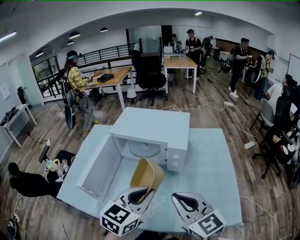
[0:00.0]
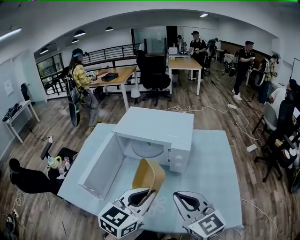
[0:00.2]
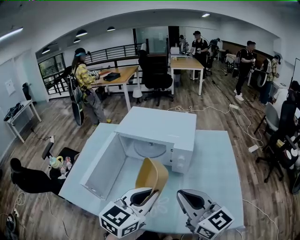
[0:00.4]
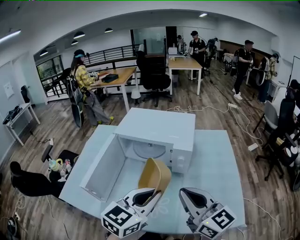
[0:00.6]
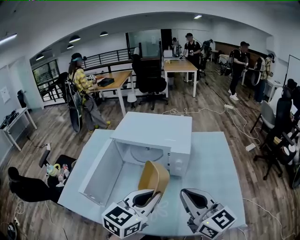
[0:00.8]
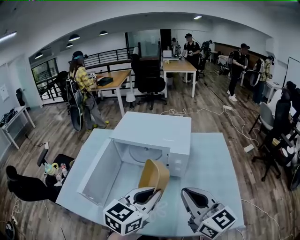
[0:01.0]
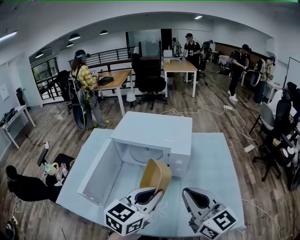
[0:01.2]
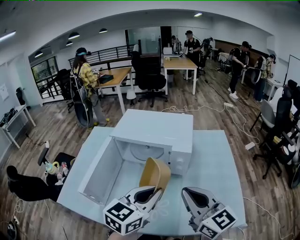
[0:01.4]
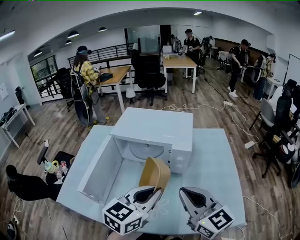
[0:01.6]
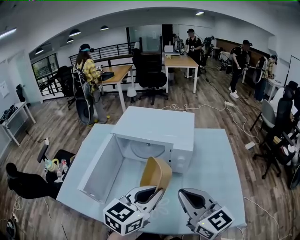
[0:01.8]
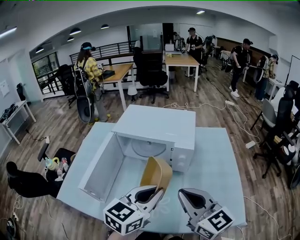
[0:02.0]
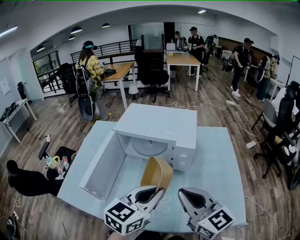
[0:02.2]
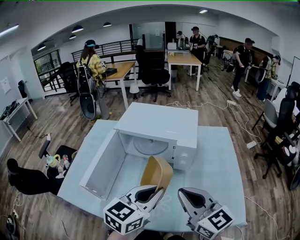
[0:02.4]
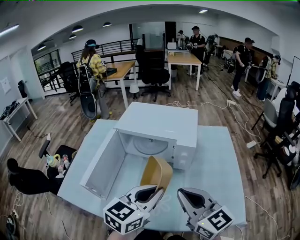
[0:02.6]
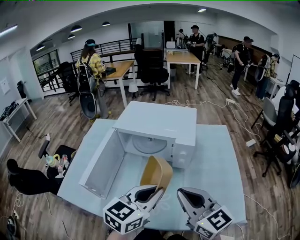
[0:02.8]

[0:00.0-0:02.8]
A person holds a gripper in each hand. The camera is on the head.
0:00.0 to 0:02.8: The grippers move only a little.

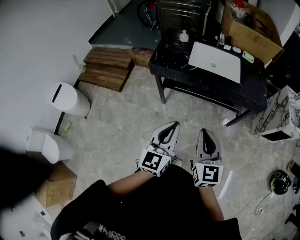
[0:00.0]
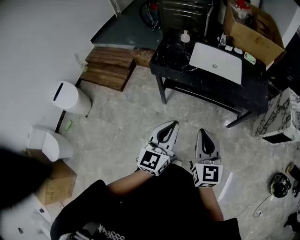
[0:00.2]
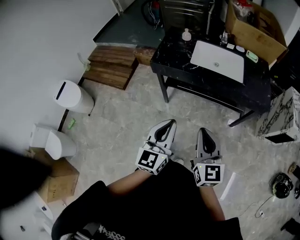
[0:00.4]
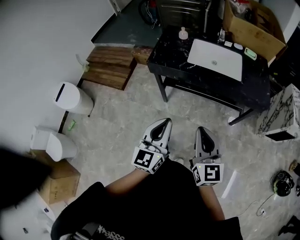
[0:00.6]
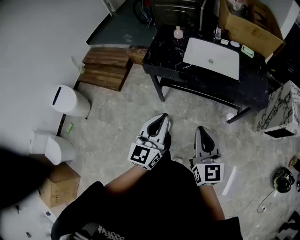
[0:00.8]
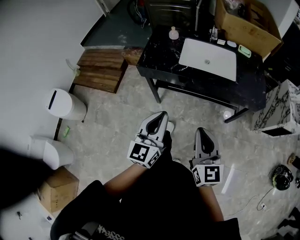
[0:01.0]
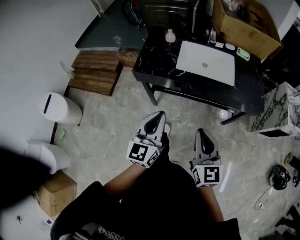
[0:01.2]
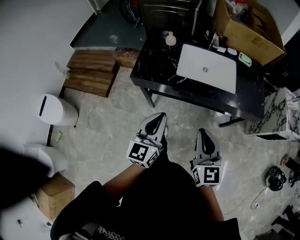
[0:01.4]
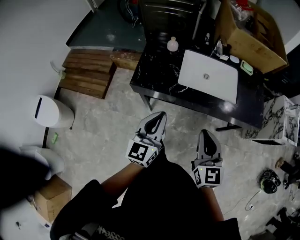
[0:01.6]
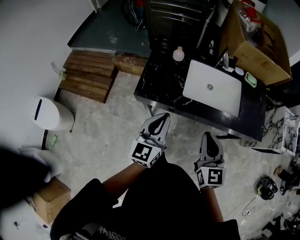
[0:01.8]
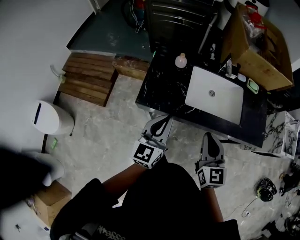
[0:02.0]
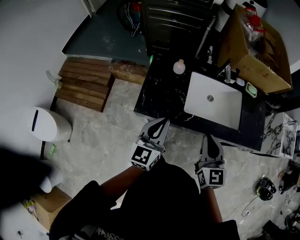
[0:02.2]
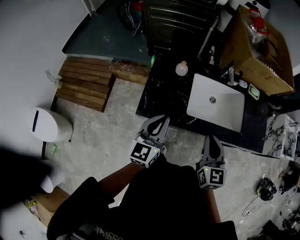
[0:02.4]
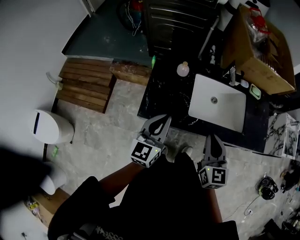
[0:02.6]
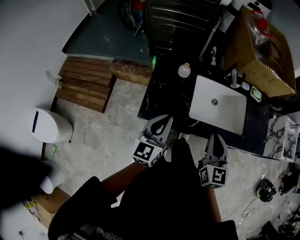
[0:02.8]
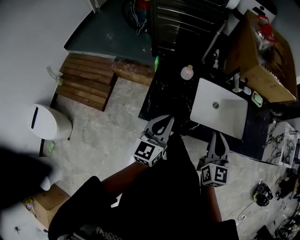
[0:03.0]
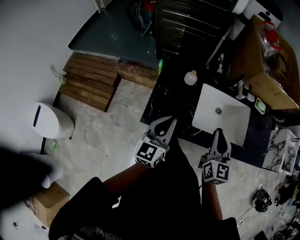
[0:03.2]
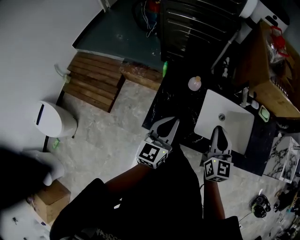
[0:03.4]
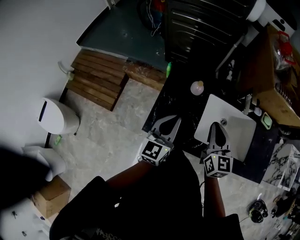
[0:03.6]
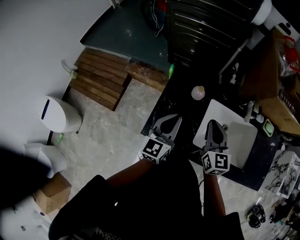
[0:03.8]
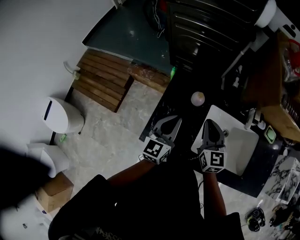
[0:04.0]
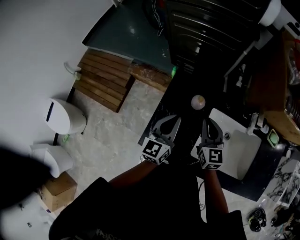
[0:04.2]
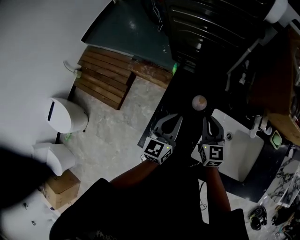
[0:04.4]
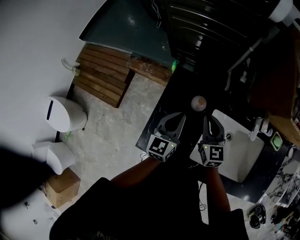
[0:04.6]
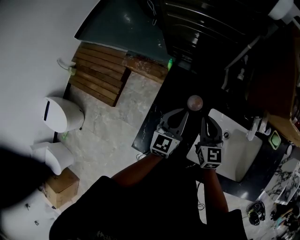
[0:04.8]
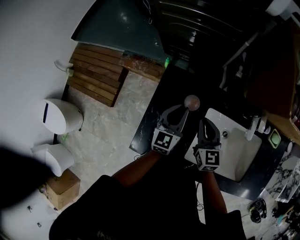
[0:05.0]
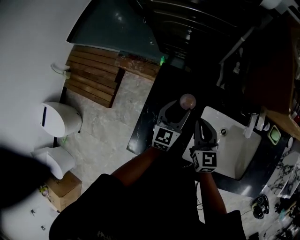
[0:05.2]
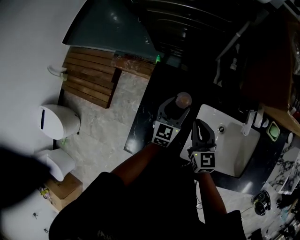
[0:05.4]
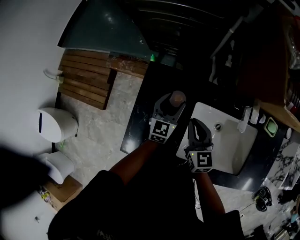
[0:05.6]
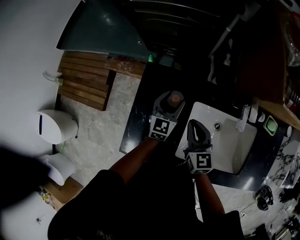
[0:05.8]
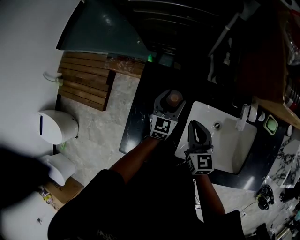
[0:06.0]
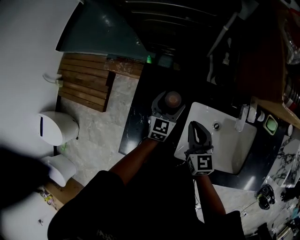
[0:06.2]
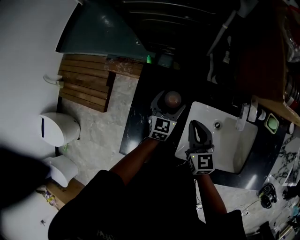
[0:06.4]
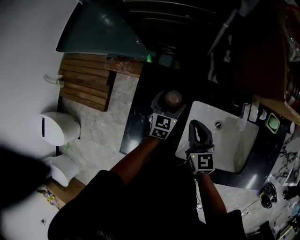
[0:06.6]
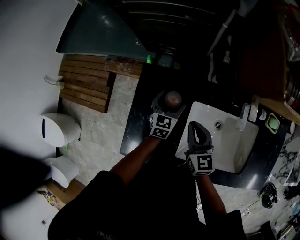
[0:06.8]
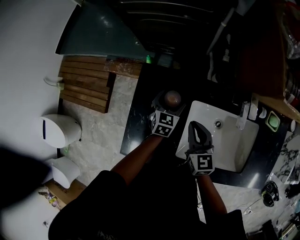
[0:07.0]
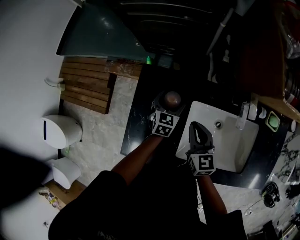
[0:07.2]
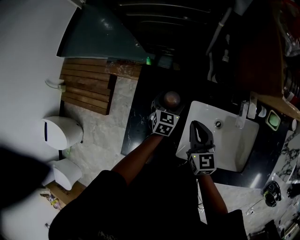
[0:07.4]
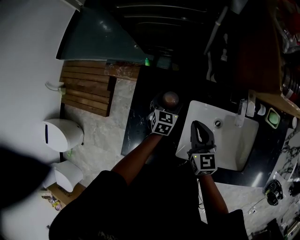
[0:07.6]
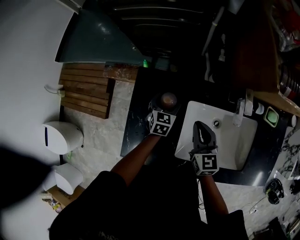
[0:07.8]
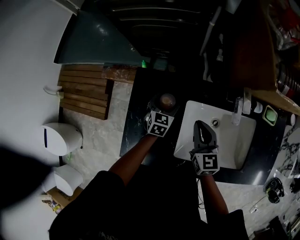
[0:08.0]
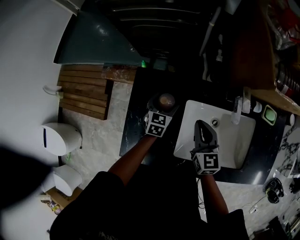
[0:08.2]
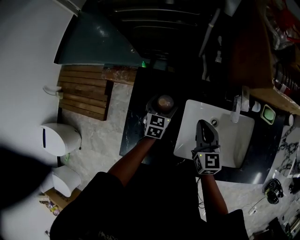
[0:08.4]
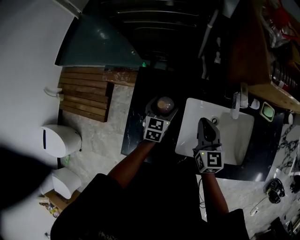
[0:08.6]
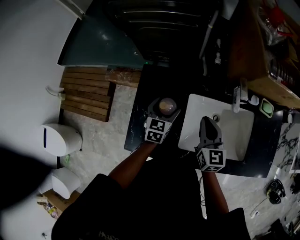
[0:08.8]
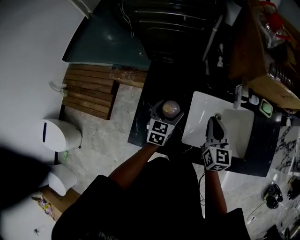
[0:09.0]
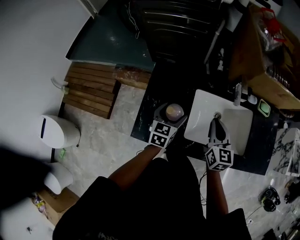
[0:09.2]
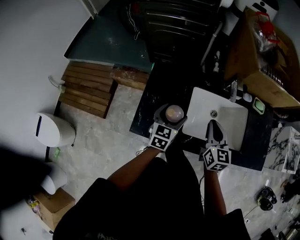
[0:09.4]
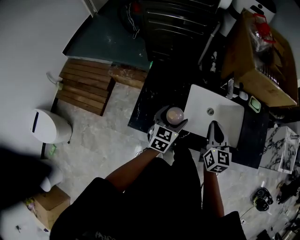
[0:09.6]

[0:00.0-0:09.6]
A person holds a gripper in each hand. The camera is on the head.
0:00.0 to 0:01.6: Both grippers move forward, about 25 cm.
0:01.6 to 0:03.2: The left gripper travels forward and to the left by roughly 25 cm, while the right gripper goes about 25 cm forward.
0:03.2 to 0:04.8: Both grippers travel together forward and downward, roughly 30 cm. The right gripper rotates approximately 20 degrees.
0:04.8 to 0:06.4: The right gripper shifts by roughly 5 cm. Meanwhile the left gripper heads downward, forward and to the right, covering roughly 15 cm, and opens.
0:06.4 to 0:08.0: The grippers stay close to where they were, moving slightly.
0:08.0 to 0:09.6: The two grippers go approximately 25 cm backward and upward.

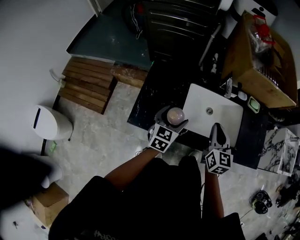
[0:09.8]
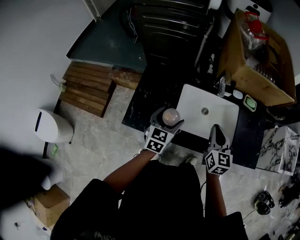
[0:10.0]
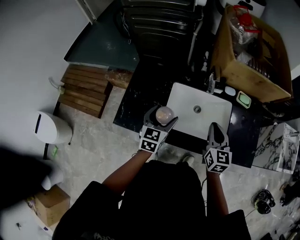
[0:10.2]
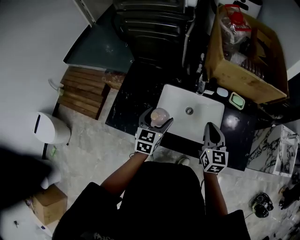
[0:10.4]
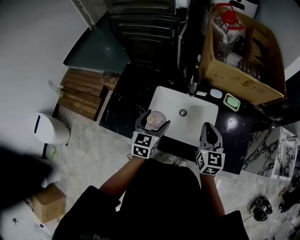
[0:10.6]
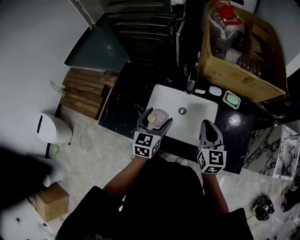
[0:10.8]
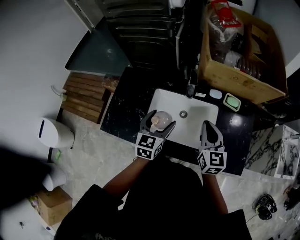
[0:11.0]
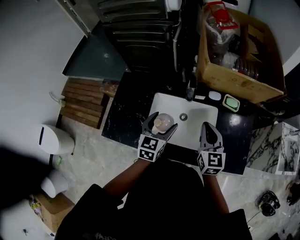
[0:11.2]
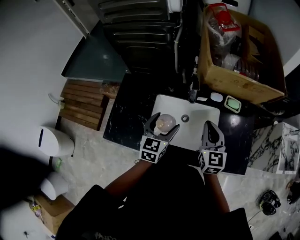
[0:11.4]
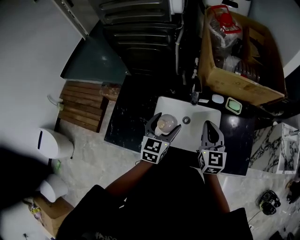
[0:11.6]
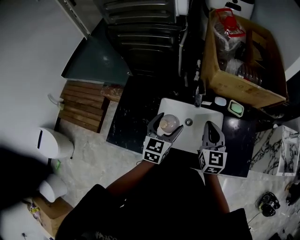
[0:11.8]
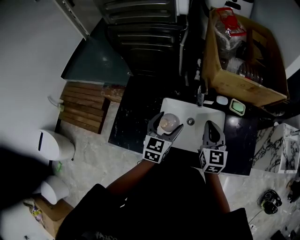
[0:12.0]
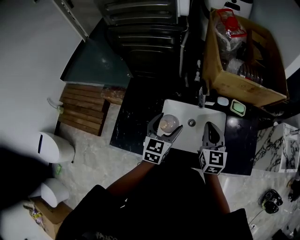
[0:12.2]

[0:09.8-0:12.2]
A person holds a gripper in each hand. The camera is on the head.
0:09.8 to 0:11.0: The two grippers go about 15 cm to the right.
0:11.0 to 0:12.2: The two grippers go about 5 cm to the left.

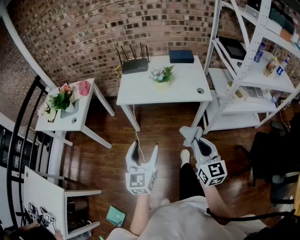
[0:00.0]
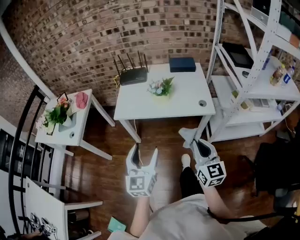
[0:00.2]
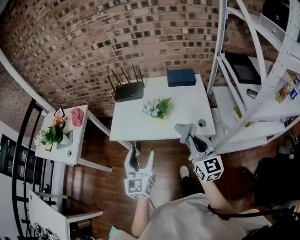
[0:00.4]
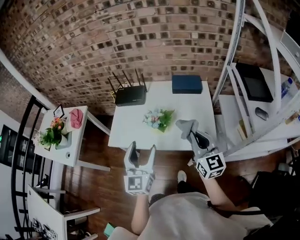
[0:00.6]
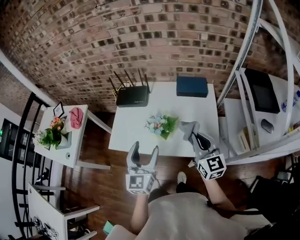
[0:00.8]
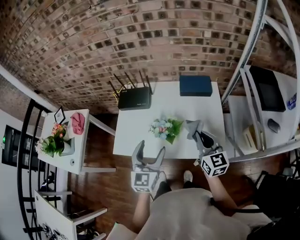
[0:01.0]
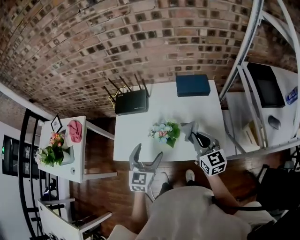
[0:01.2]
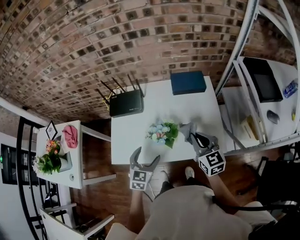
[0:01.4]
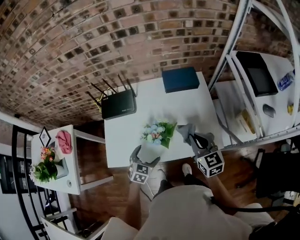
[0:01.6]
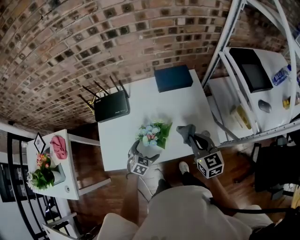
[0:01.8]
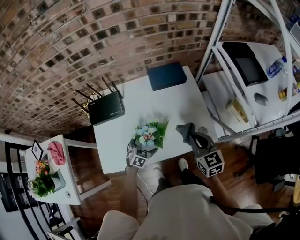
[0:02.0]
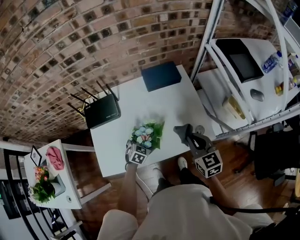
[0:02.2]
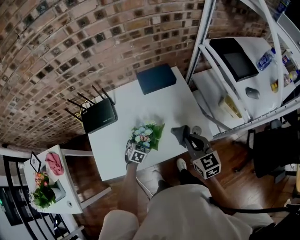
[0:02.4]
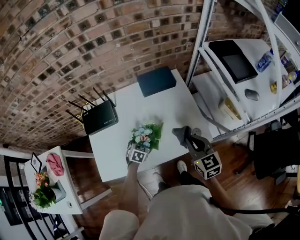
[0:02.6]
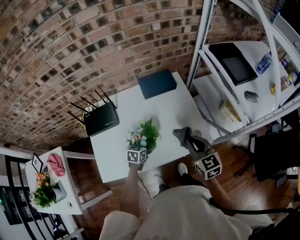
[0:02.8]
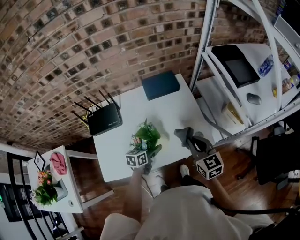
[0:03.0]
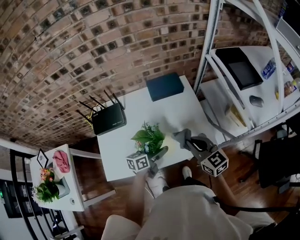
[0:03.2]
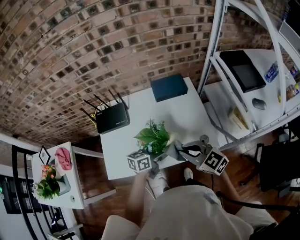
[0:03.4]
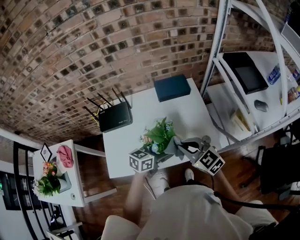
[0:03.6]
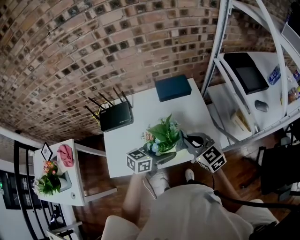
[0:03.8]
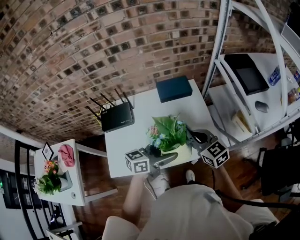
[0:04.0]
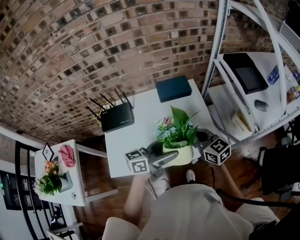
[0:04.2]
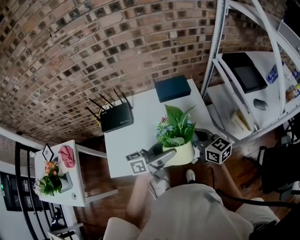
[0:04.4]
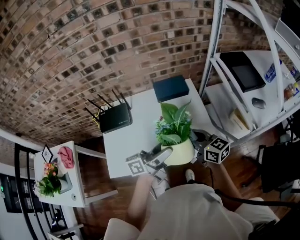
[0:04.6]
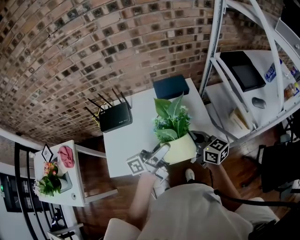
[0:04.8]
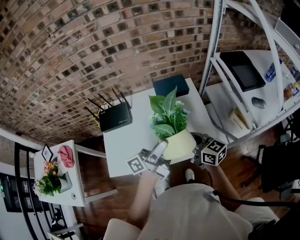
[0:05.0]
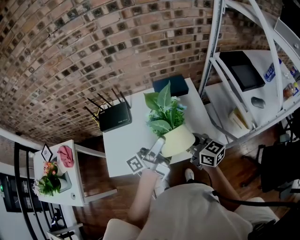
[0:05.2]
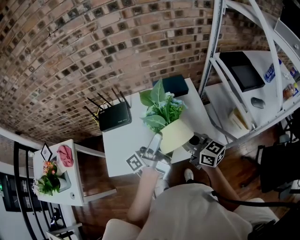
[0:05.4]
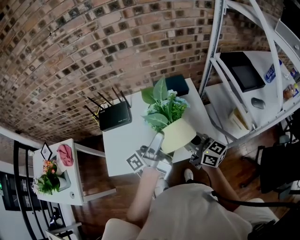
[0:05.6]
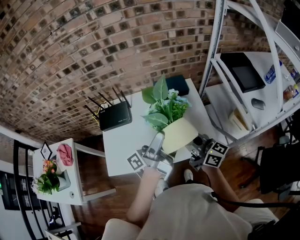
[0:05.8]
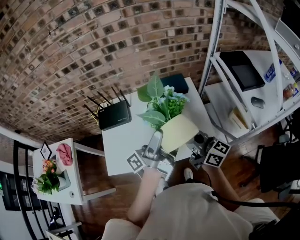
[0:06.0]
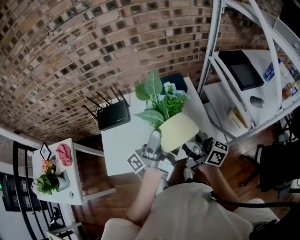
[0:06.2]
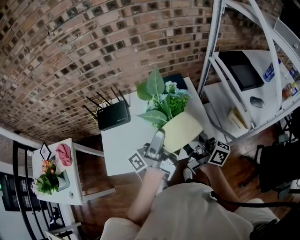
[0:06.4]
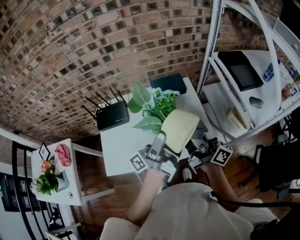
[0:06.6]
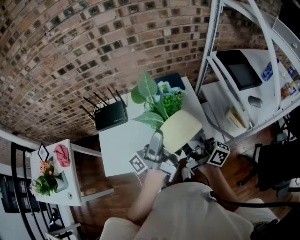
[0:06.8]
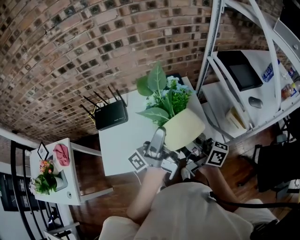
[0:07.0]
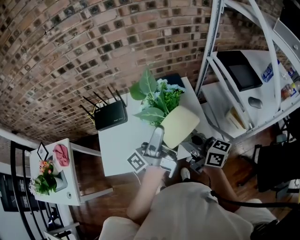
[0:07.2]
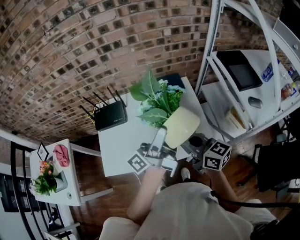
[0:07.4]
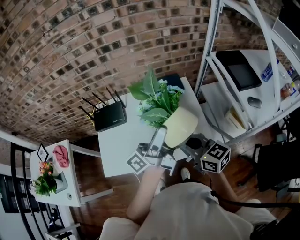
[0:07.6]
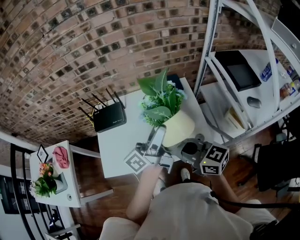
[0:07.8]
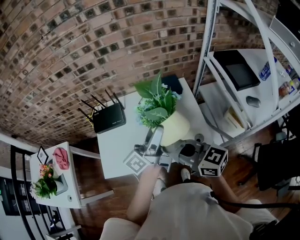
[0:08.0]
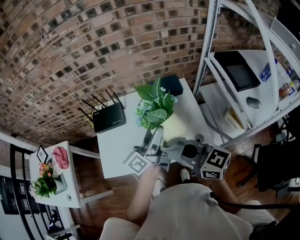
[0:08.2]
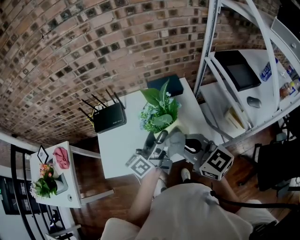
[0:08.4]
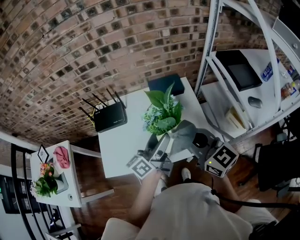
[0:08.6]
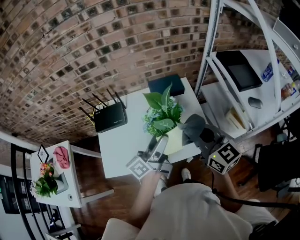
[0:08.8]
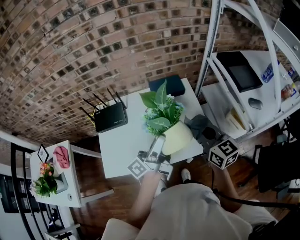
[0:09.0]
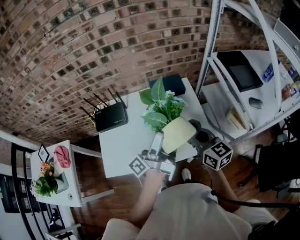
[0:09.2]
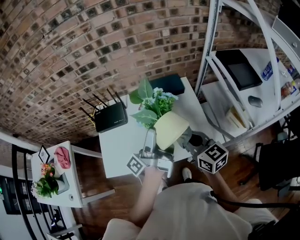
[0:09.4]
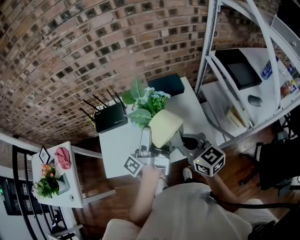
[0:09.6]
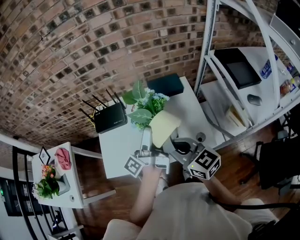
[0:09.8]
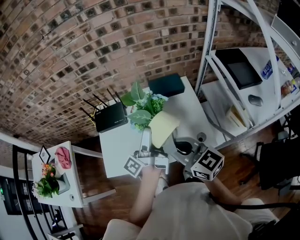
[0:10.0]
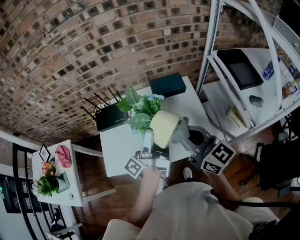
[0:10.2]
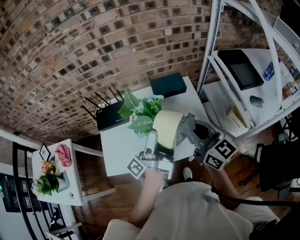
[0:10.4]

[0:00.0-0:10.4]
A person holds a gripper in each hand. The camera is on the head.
0:00.0 to 0:01.4: Both grippers are carried forward, about 50 cm. The left gripper turns by approximately 30 degrees.
0:01.4 to 0:03.0: The right gripper goes about 5 cm to the right. The left gripper is displaced downward, forward and to the right by approximately 15 cm, and changes its angle by roughly 40 degrees.
0:03.0 to 0:04.4: The left gripper travels upward by roughly 25 cm, and angles its fingers upward, by about 40 degrees. The right gripper shifts by approximately 5 cm, and rotates roughly 20 degrees.
0:04.4 to 0:06.0: The right gripper heads upward, covering roughly 5 cm, and changes its angle by some 20 degrees; the left gripper goes roughly 10 cm upward, and changes its angle by approximately 50 degrees.
0:07.4 to 0:09.0: The left gripper heads downward, covering roughly 5 cm. Meanwhile the right gripper goes about 5 cm to the right, and turns by some 20 degrees.
0:09.0 to 0:10.4: The right gripper heads upward and to the left, covering approximately 10 cm.
